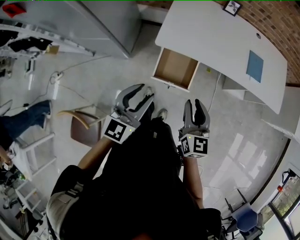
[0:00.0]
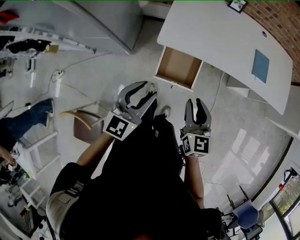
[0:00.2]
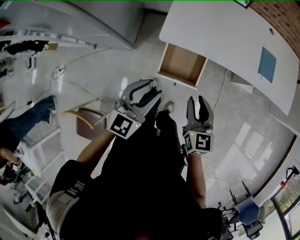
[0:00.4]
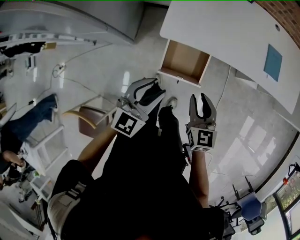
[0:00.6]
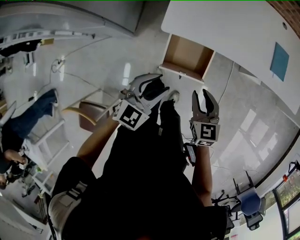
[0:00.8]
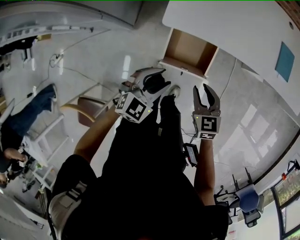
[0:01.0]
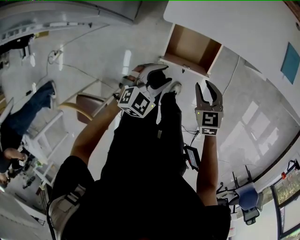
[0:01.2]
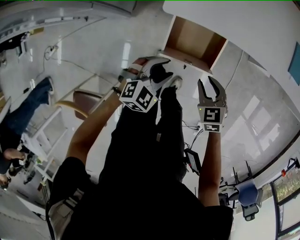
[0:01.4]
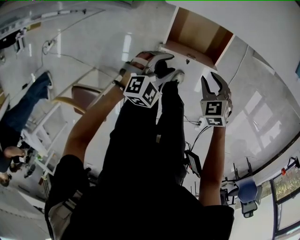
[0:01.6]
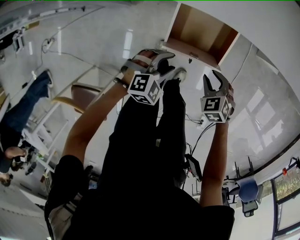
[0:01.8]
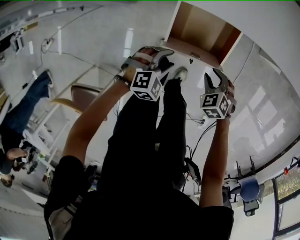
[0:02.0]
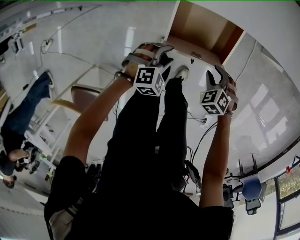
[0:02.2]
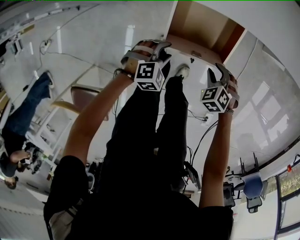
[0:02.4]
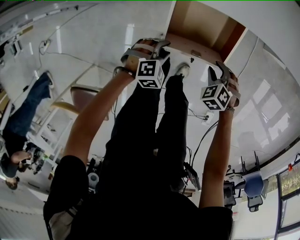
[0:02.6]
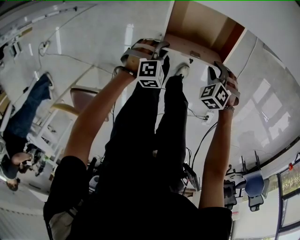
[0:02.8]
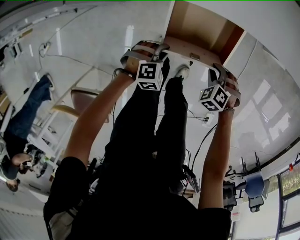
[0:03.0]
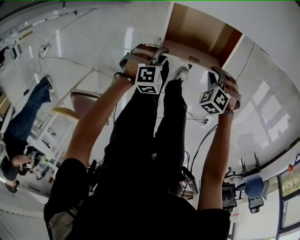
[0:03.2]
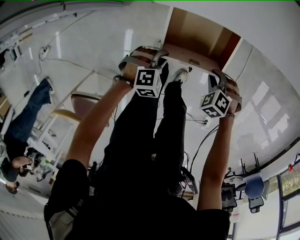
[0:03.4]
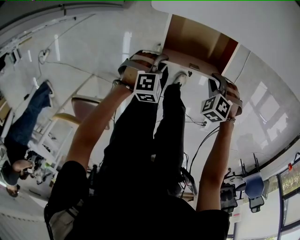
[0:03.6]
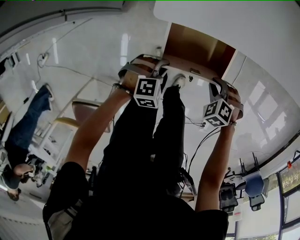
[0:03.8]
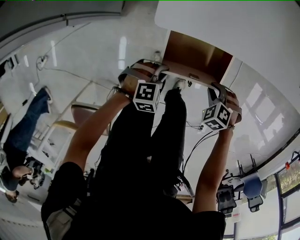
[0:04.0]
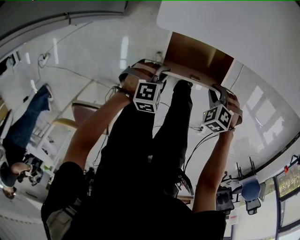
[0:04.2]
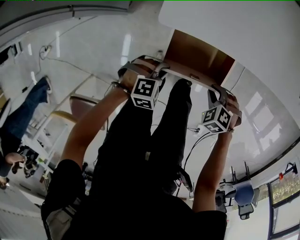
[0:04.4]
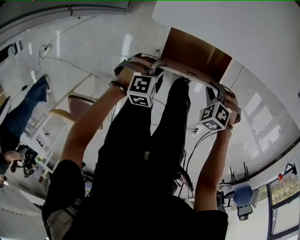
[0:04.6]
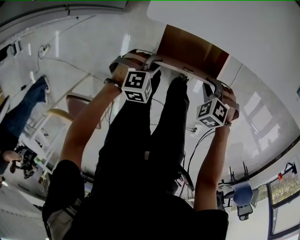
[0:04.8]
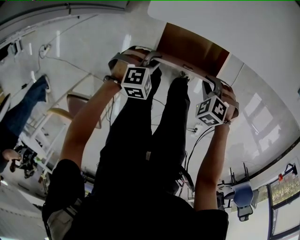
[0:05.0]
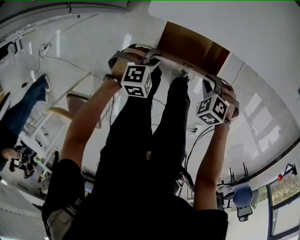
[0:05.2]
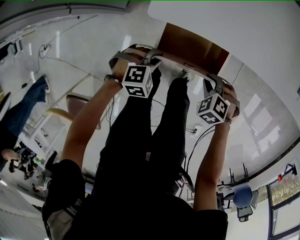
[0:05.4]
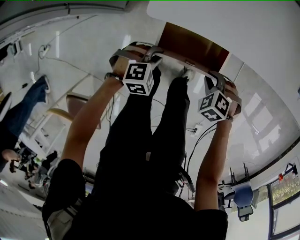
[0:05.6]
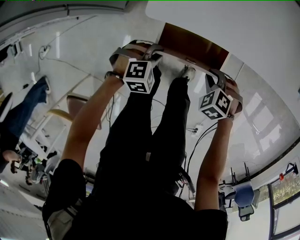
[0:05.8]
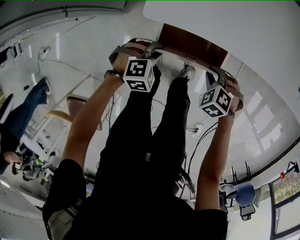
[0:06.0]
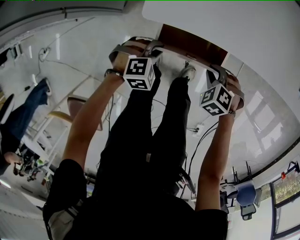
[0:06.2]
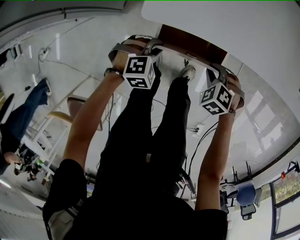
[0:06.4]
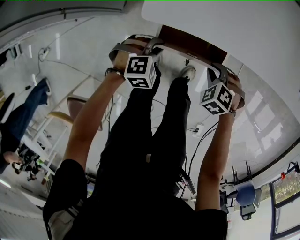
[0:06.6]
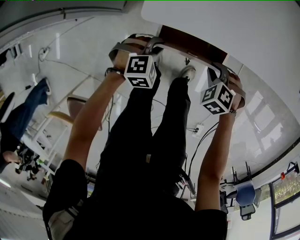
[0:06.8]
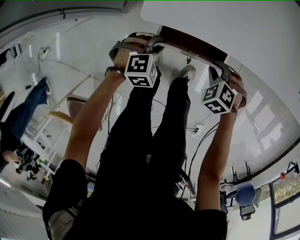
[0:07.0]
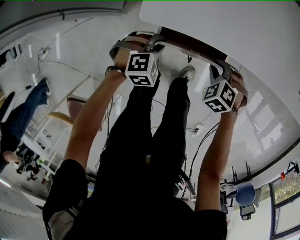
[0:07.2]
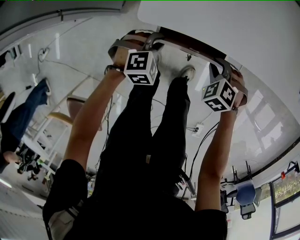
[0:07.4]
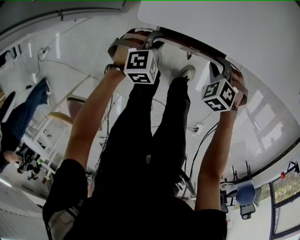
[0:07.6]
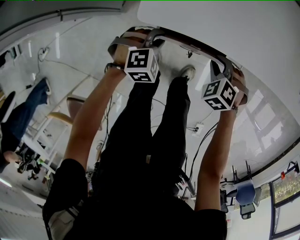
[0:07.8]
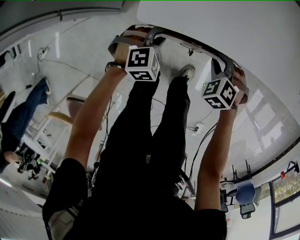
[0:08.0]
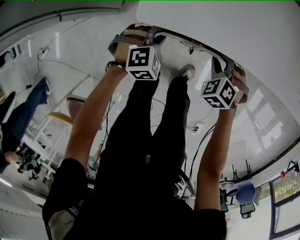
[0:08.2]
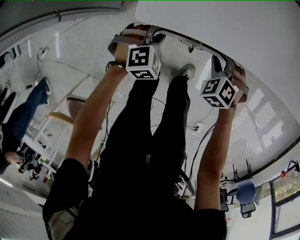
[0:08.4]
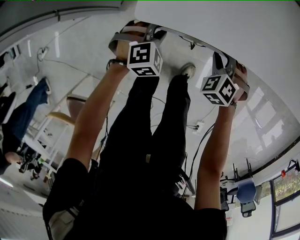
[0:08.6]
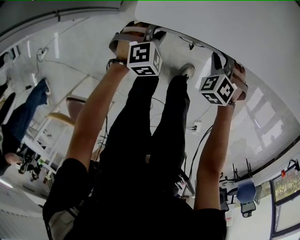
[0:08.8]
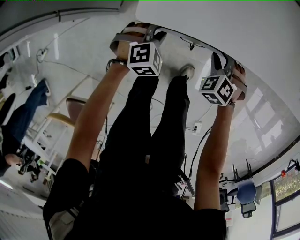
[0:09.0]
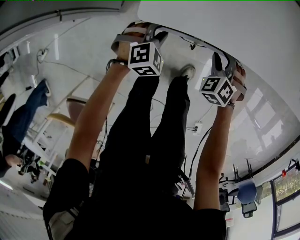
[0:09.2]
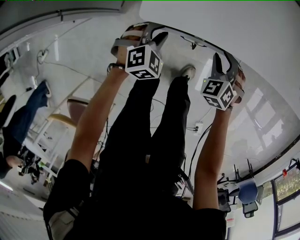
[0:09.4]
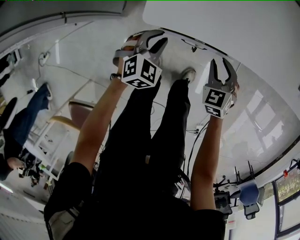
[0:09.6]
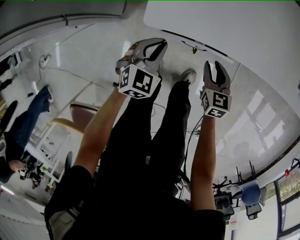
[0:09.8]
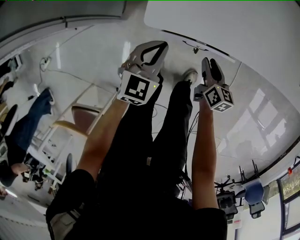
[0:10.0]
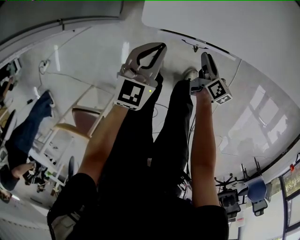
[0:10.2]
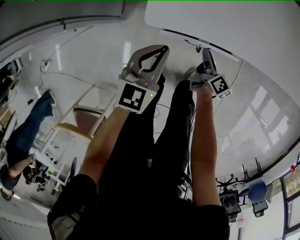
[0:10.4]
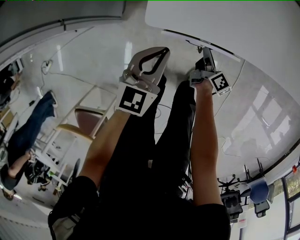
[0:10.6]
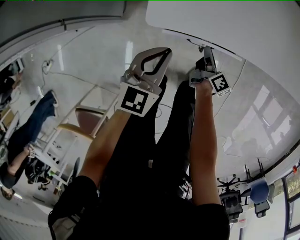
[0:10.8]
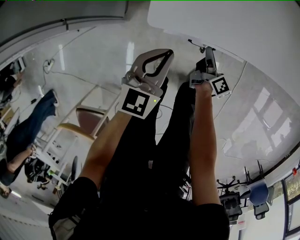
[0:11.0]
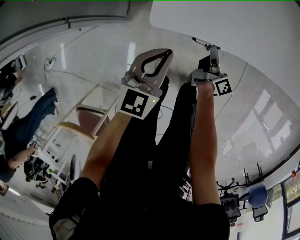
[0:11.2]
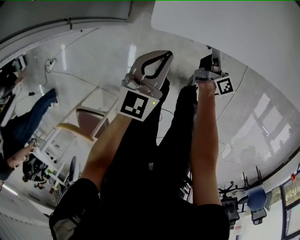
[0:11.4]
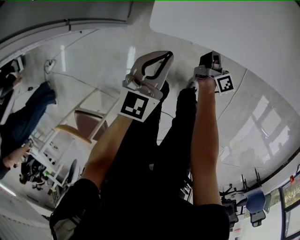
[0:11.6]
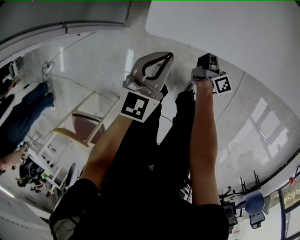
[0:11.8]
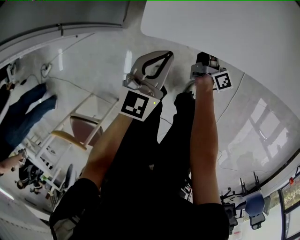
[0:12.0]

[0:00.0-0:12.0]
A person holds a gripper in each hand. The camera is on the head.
0:00.0 to 0:01.6: Both grippers move downward, some 30 cm. The left gripper tilts its fingers about 40 degrees downward. Meanwhile the right gripper tilts its fingers roughly 40 degrees downward.
0:01.6 to 0:03.0: The grippers both shift downward by roughly 15 cm. The left gripper swivels roughly 20 degrees, and closes. The right gripper rotates some 30 degrees.
0:03.0 to 0:04.4: Both grippers travel together upward, roughly 5 cm.
0:04.4 to 0:06.0: The left gripper moves about 5 cm; the right gripper shifts by some 5 cm.
0:06.0 to 0:07.6: The left gripper moves some 5 cm; the right gripper ends up about 5 cm from where it was.
0:07.6 to 0:09.0: There are only small adjustments of the grippers.
0:09.0 to 0:10.4: The left gripper moves upward, some 15 cm, tilts its fingers approximately 30 degrees upward, and closes its fingers, while the right gripper is displaced downward by about 5 cm, and rotates around the line of its fingers by about 110 degrees, clockwise from behind.
0:10.4 to 0:12.0: The right gripper shifts roughly 10 cm forward, rotates roughly 20 degrees, and closes up.

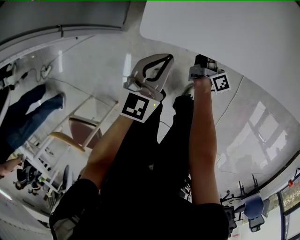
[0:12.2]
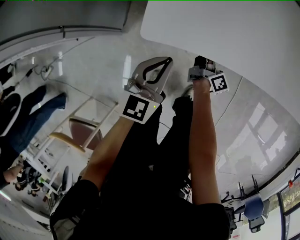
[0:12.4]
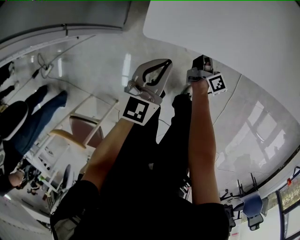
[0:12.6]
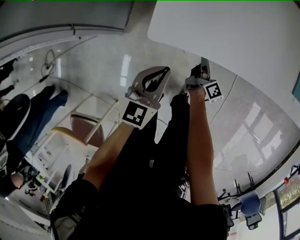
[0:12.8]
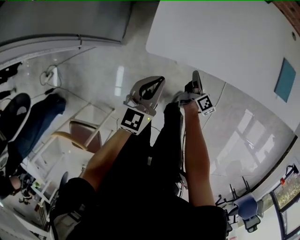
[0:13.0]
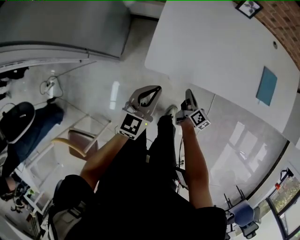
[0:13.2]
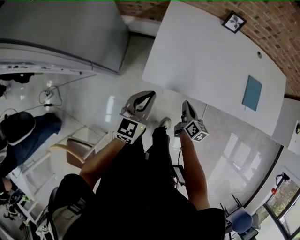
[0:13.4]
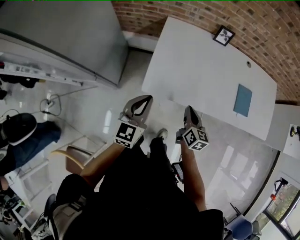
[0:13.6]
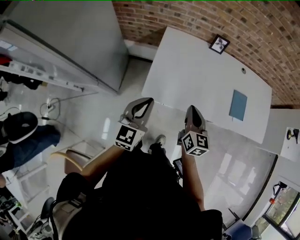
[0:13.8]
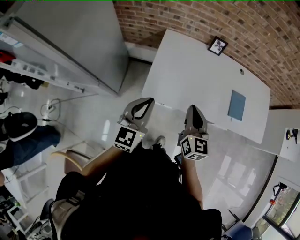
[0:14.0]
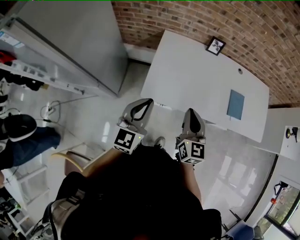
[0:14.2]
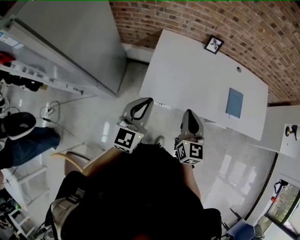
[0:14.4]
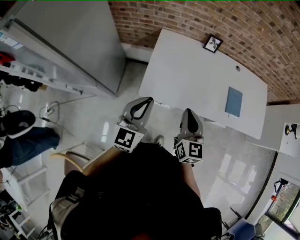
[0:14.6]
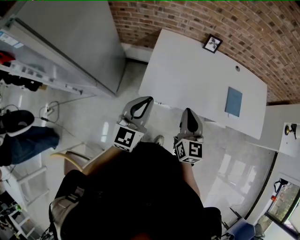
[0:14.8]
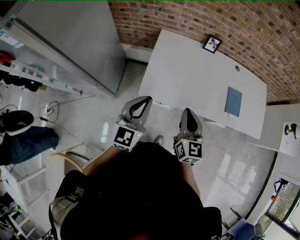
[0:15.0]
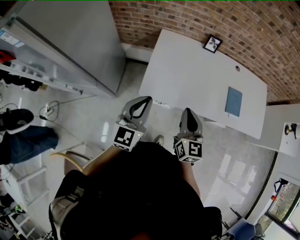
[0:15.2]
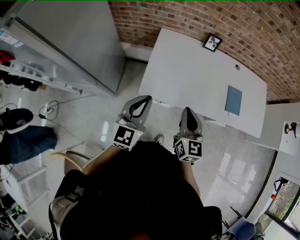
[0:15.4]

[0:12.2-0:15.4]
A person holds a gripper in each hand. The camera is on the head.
0:12.2 to 0:13.8: Both grippers travel together upward, roughly 40 cm. The right gripper rolls counterclockwise, seen from behind, by roughly 60 degrees.
0:13.8 to 0:15.4: Both grippers travel together upward, some 5 cm.

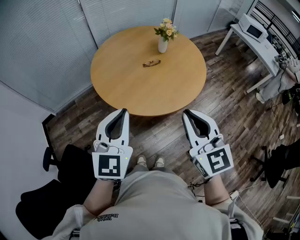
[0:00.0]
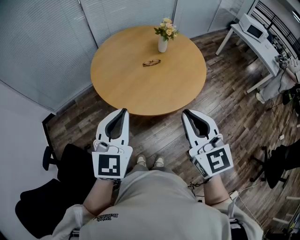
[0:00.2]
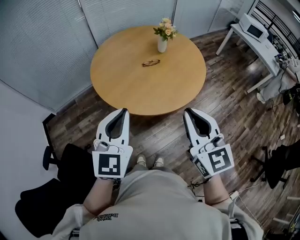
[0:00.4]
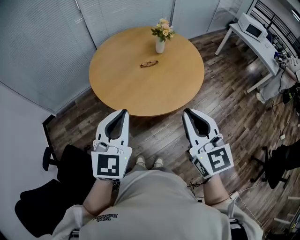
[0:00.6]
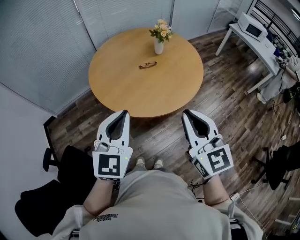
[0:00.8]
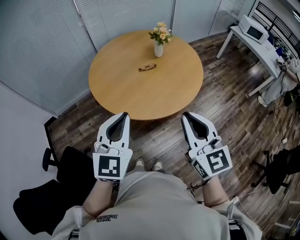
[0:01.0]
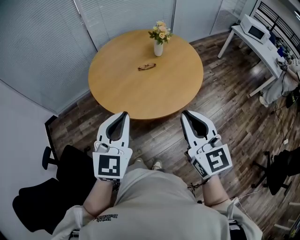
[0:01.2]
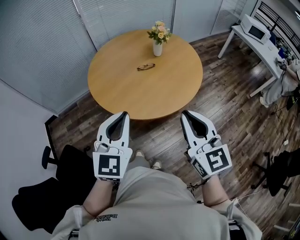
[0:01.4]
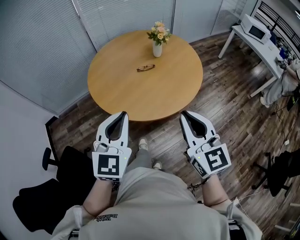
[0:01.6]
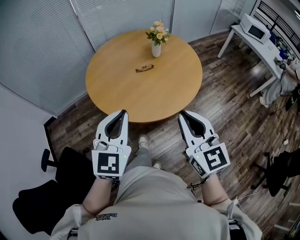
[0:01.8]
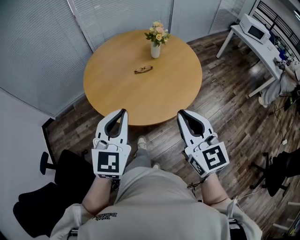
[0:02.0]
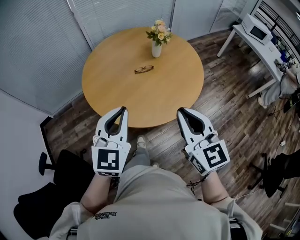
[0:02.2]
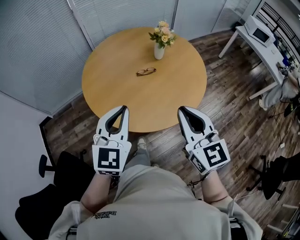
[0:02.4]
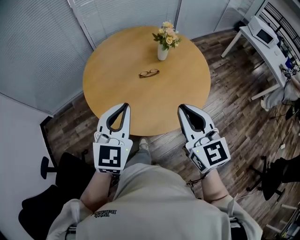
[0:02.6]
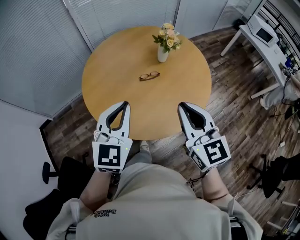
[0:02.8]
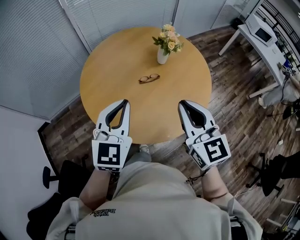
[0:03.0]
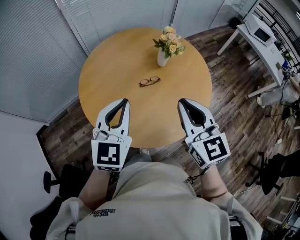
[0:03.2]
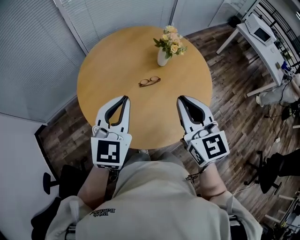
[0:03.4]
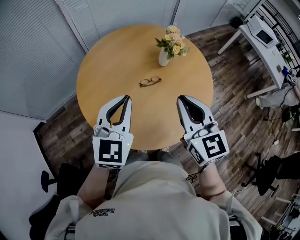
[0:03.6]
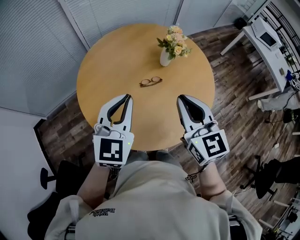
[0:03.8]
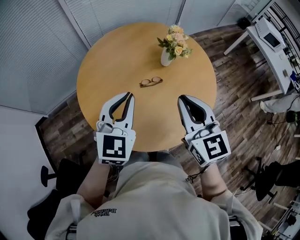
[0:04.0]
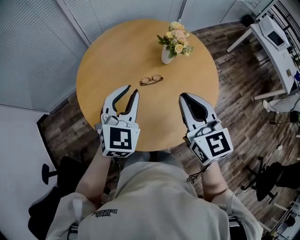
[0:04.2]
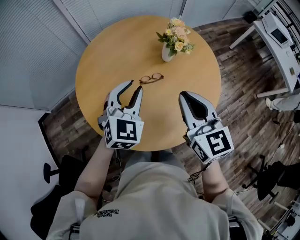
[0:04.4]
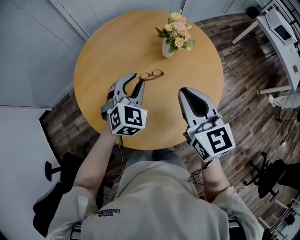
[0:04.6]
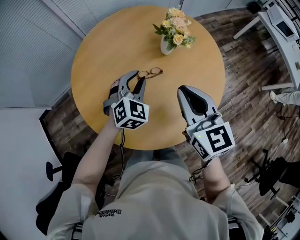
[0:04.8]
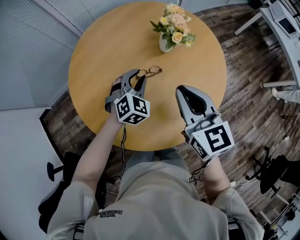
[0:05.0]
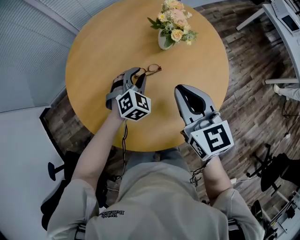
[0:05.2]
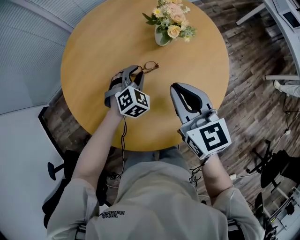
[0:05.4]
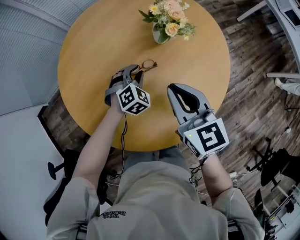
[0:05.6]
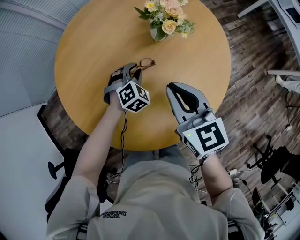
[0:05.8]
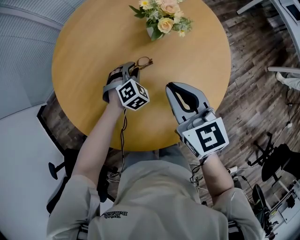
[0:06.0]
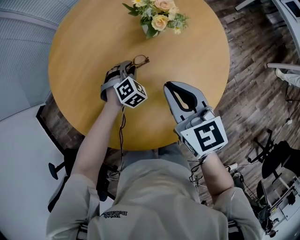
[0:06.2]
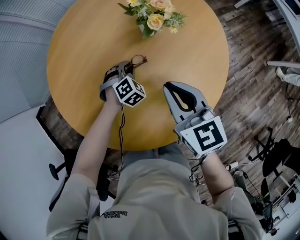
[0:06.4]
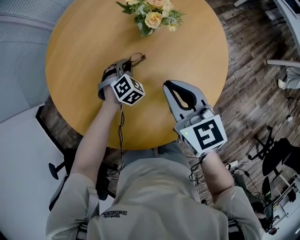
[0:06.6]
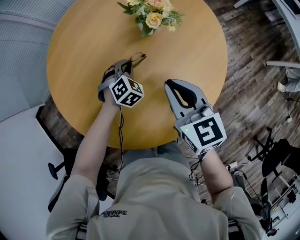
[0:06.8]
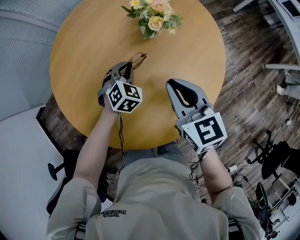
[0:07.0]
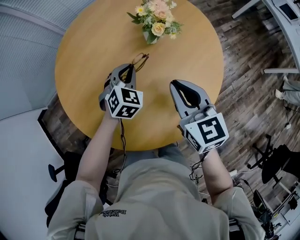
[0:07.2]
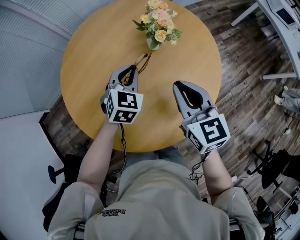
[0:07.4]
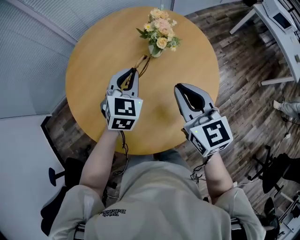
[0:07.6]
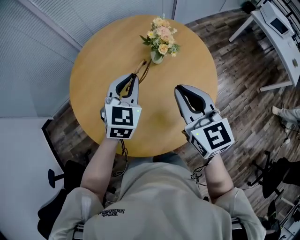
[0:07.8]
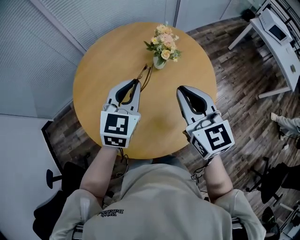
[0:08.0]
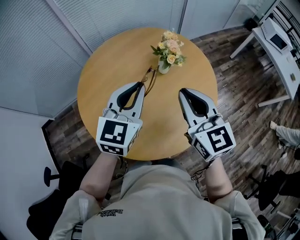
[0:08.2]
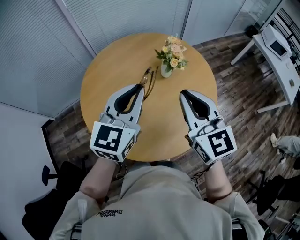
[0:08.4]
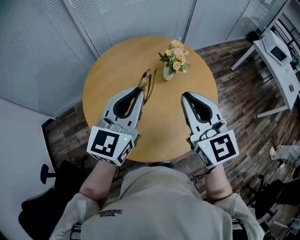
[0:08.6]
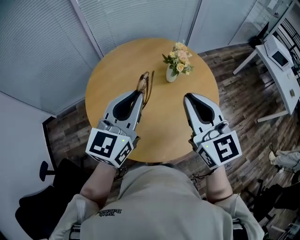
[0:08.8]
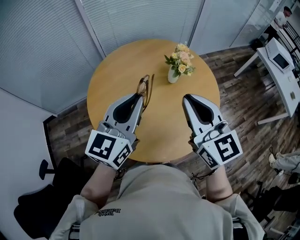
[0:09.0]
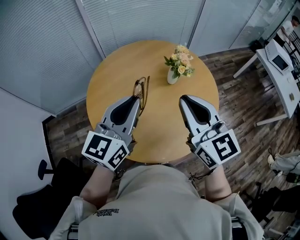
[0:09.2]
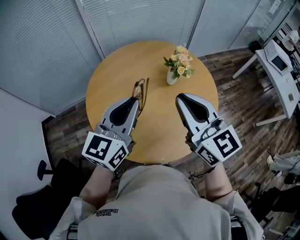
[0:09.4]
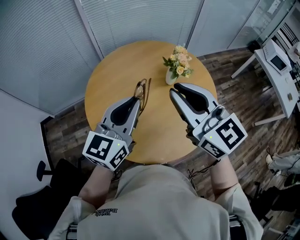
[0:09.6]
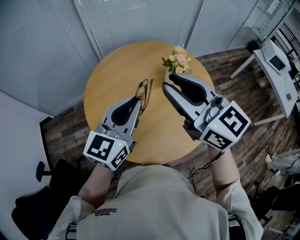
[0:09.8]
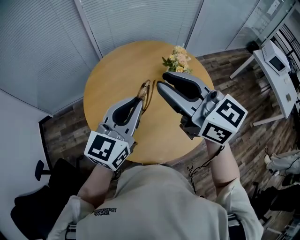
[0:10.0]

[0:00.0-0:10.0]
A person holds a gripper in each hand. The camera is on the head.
0:00.0 to 0:01.4: Both grippers travel together to the right, some 10 cm.
0:01.4 to 0:02.8: Both grippers travel together forward, approximately 20 cm.
0:02.8 to 0:04.2: The two grippers go about 15 cm forward.
0:04.2 to 0:05.8: The left gripper moves downward and forward, about 35 cm, and tilts its fingers some 30 degrees downward. Meanwhile the right gripper shifts about 15 cm downward and forward.
0:05.8 to 0:07.2: The left gripper is displaced upward by about 10 cm.
0:07.2 to 0:08.6: The right gripper heads upward, covering some 20 cm, and rotates roughly 20 degrees; the left gripper moves upward and backward, approximately 35 cm, and angles its fingers upward, by roughly 40 degrees.
0:08.6 to 0:10.0: The right gripper heads to the left and upward, covering approximately 10 cm, and swivels approximately 30 degrees.
